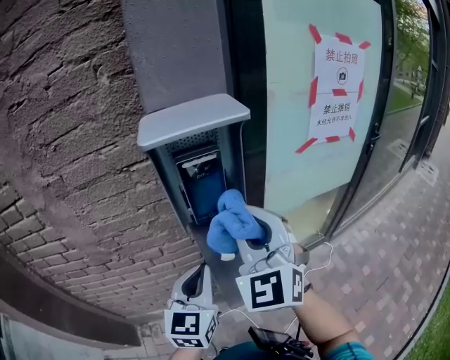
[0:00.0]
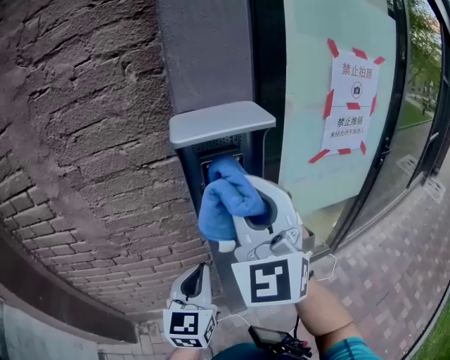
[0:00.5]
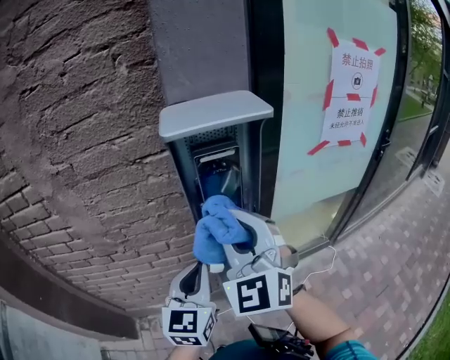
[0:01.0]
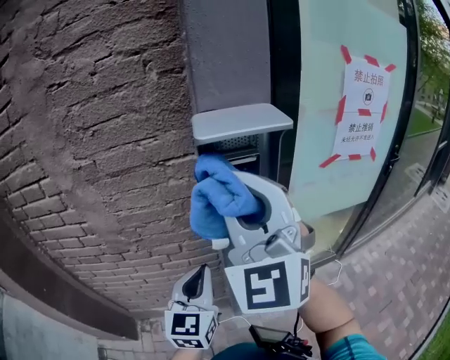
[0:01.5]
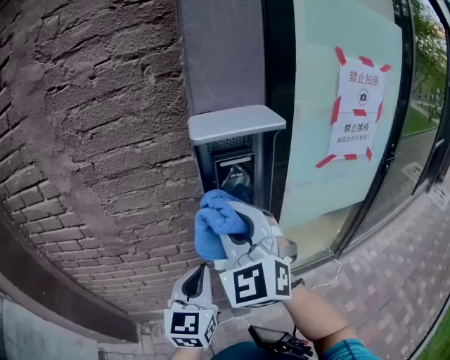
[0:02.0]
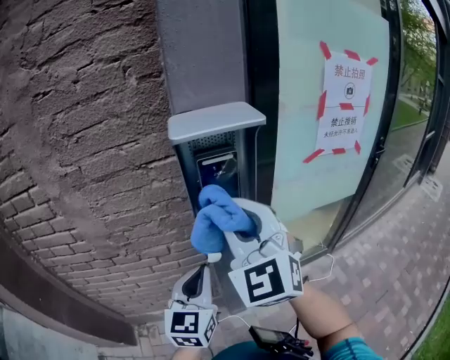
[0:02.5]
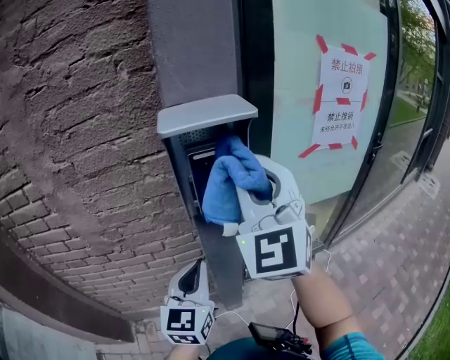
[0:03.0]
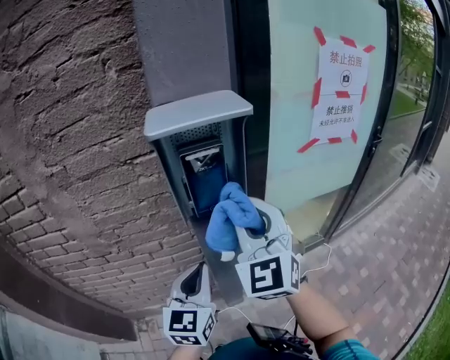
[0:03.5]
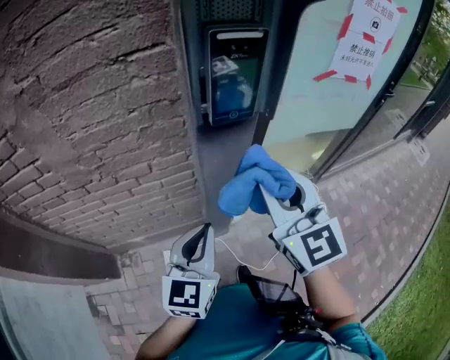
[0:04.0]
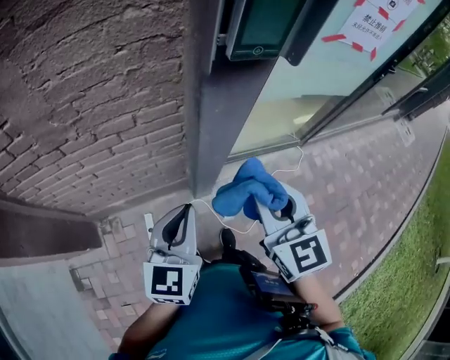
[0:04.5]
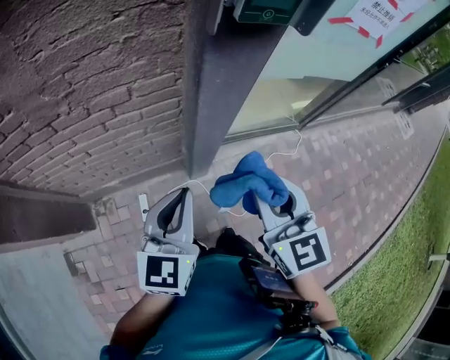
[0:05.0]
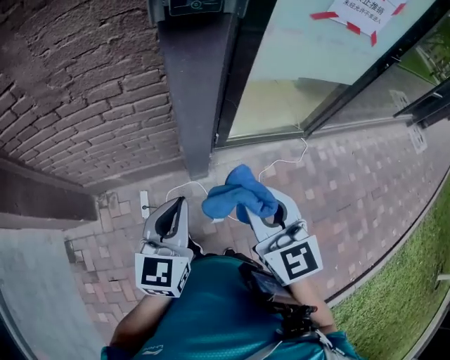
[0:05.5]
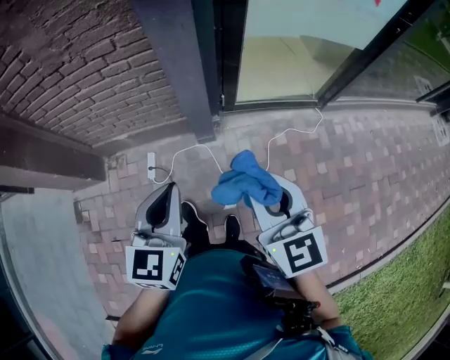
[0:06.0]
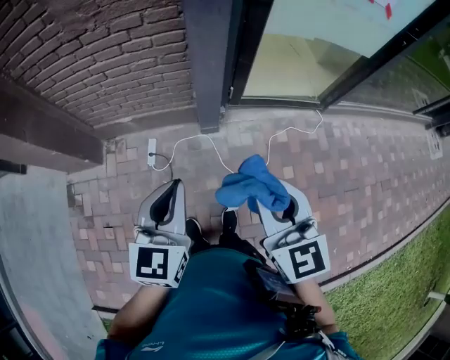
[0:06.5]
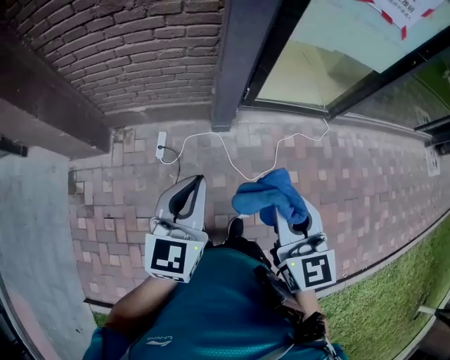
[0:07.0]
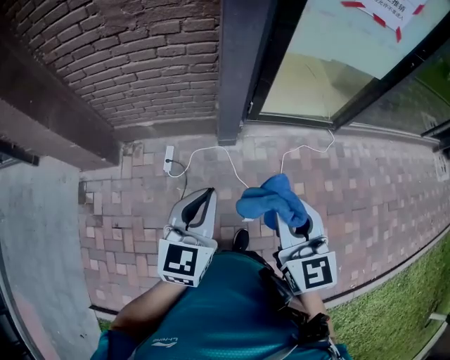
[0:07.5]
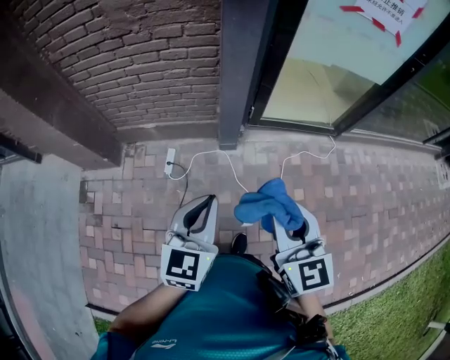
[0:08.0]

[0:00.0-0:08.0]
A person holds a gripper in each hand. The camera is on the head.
0:00.0 to 0:02.0: The right gripper moves up and down over roughly 10 cm, changing direction 3 times. Meanwhile the left gripper changes place by some 5 cm.
0:02.0 to 0:04.0: The right gripper moves downward and to the right, some 15 cm, and swivels about 30 degrees; the left gripper heads downward and backward, covering some 10 cm.
0:04.0 to 0:06.0: The right gripper shifts some 35 cm backward, downward and to the right. Meanwhile the left gripper travels backward by some 20 cm.
0:06.0 to 0:08.0: The left gripper is displaced backward by approximately 10 cm. Meanwhile the right gripper travels backward and to the left by roughly 10 cm.

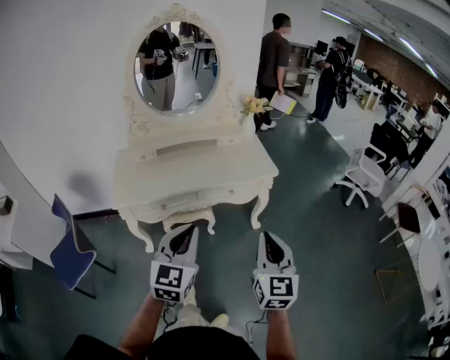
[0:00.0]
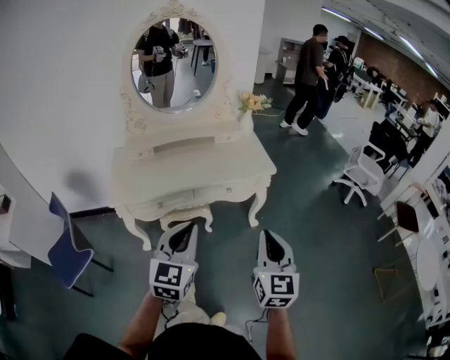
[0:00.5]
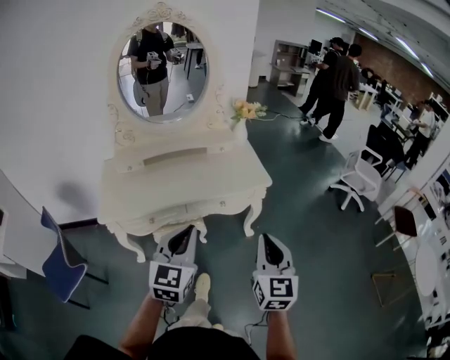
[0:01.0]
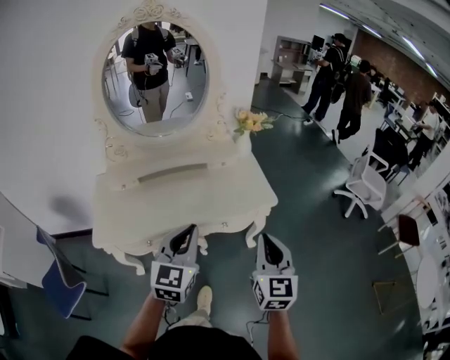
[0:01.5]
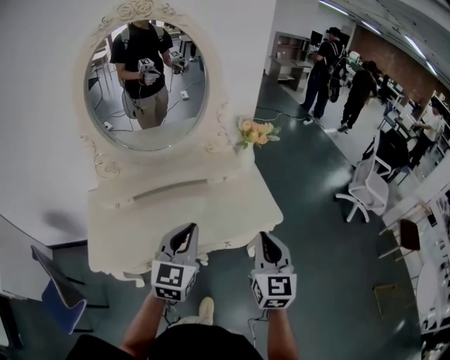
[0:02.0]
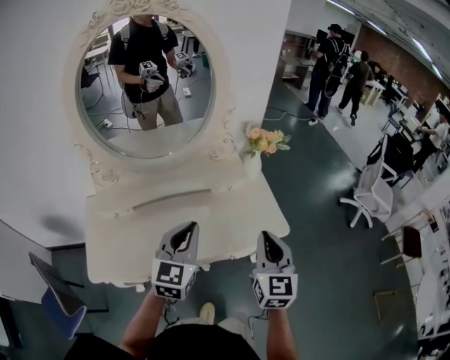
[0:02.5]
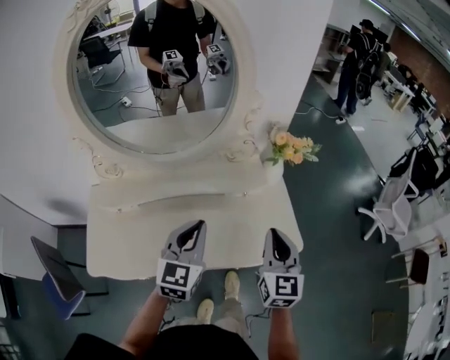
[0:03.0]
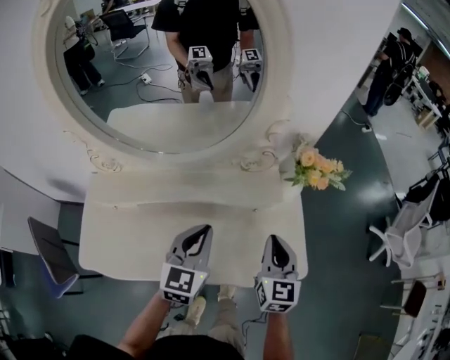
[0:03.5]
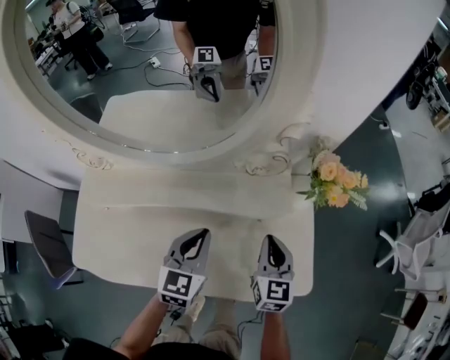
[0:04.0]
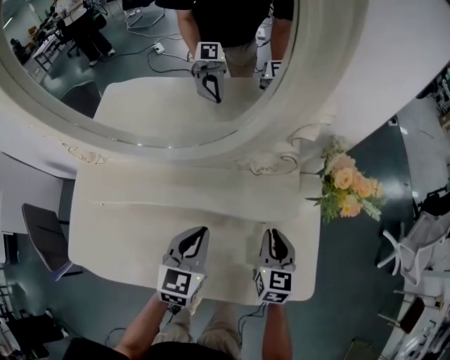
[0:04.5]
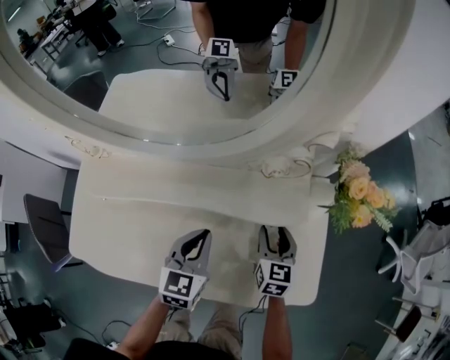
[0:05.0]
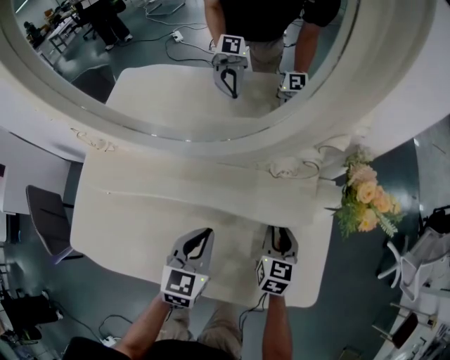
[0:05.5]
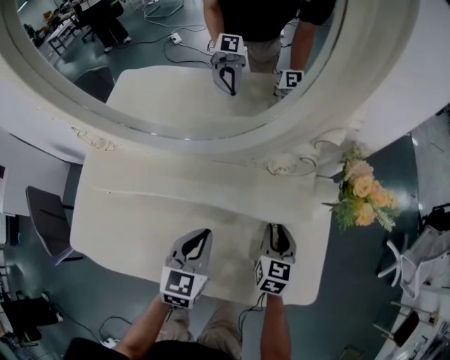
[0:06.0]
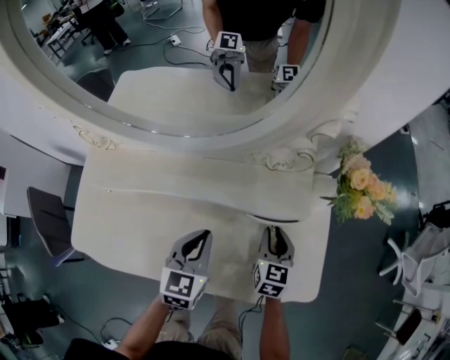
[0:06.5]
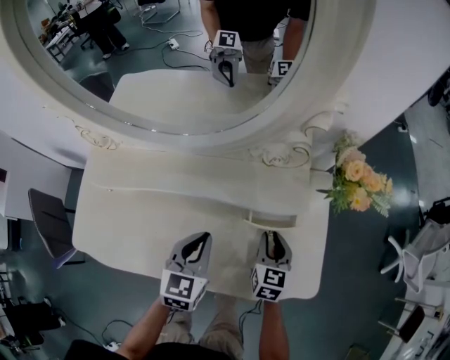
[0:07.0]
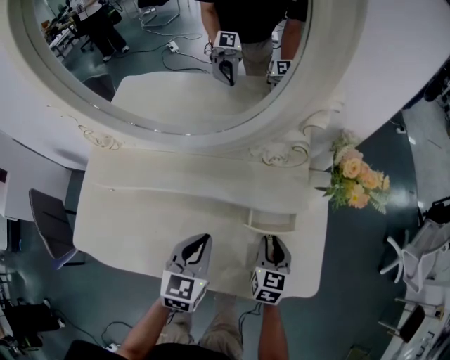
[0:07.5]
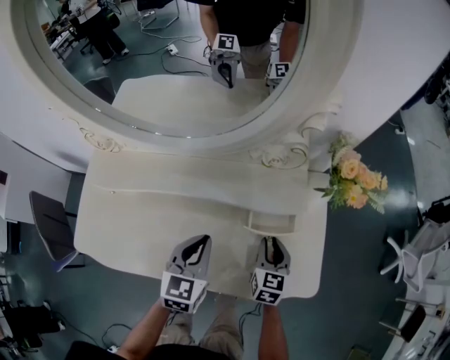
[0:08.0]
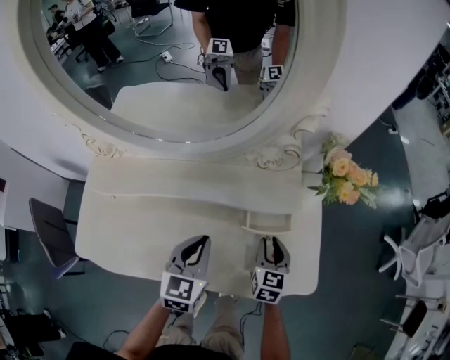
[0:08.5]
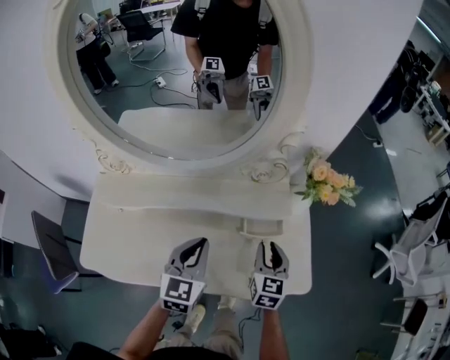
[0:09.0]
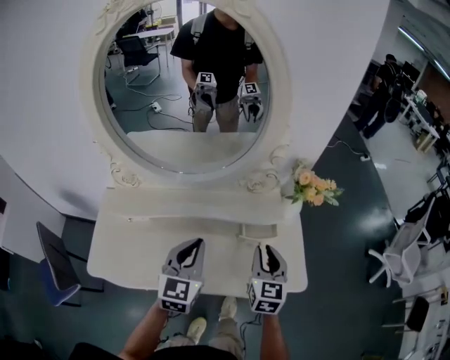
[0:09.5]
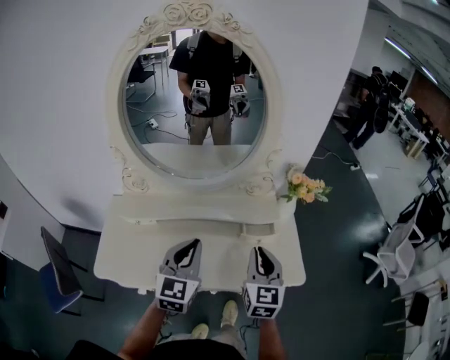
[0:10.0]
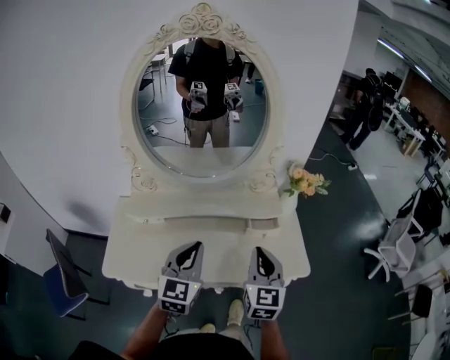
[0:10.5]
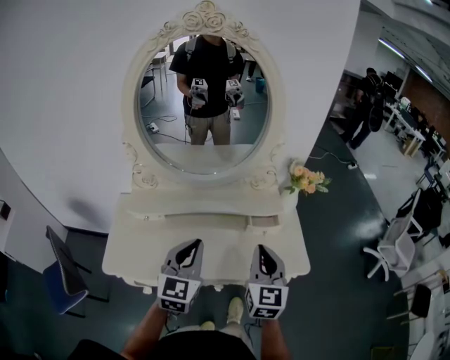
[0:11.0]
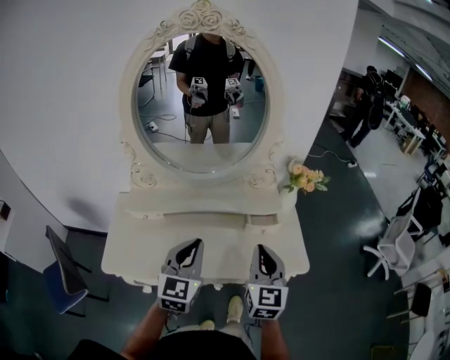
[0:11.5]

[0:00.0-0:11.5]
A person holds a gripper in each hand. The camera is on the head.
0:00.0 to 0:02.0: Both grippers travel together forward, some 35 cm.
0:02.0 to 0:04.0: The two grippers go some 35 cm forward and downward. The right gripper rotates approximately 20 degrees. Meanwhile the left gripper swivels about 20 degrees.
0:04.0 to 0:06.0: The left gripper is displaced downward by approximately 5 cm. Meanwhile the right gripper goes roughly 10 cm downward, and opens up.
0:06.0 to 0:07.5: The right gripper shifts approximately 5 cm backward.
0:07.5 to 0:09.5: The two grippers go roughly 20 cm upward.
0:09.5 to 0:11.5: The left gripper moves backward and upward, about 15 cm. Meanwhile the right gripper heads backward, upward and to the left, covering about 20 cm, and closes its fingers.

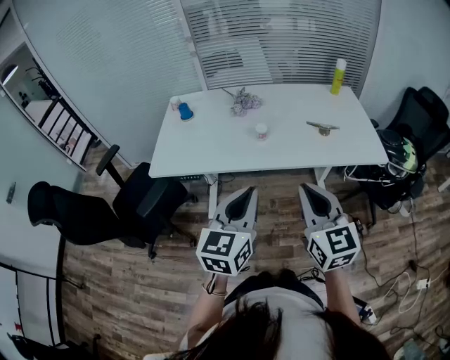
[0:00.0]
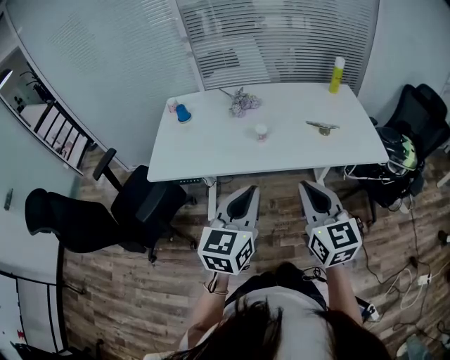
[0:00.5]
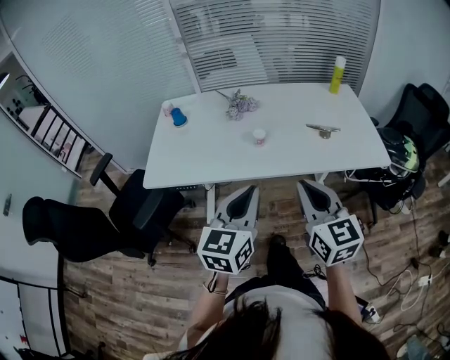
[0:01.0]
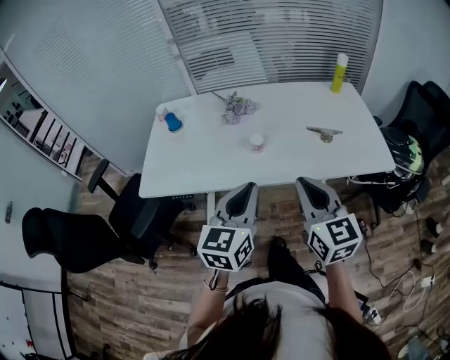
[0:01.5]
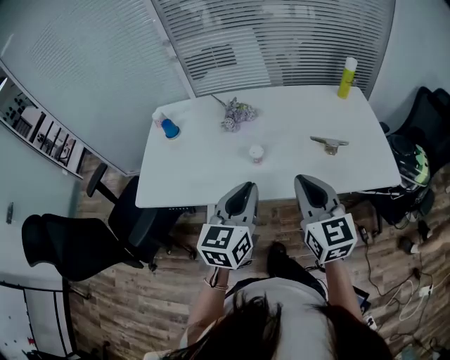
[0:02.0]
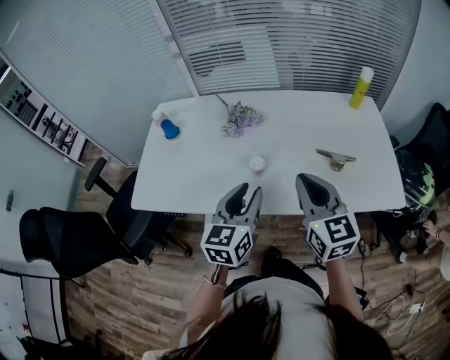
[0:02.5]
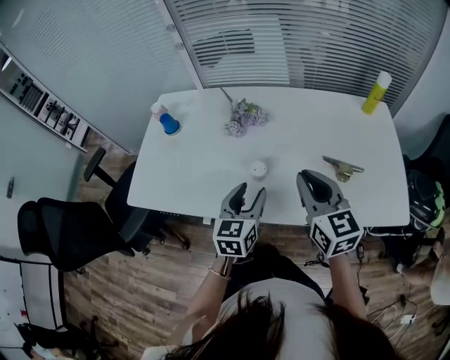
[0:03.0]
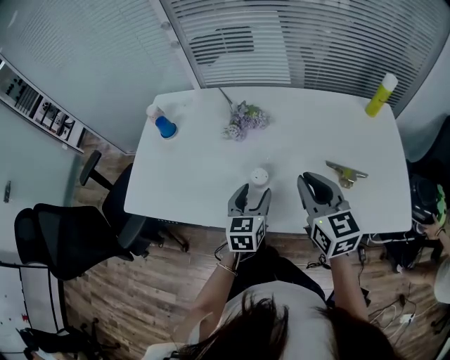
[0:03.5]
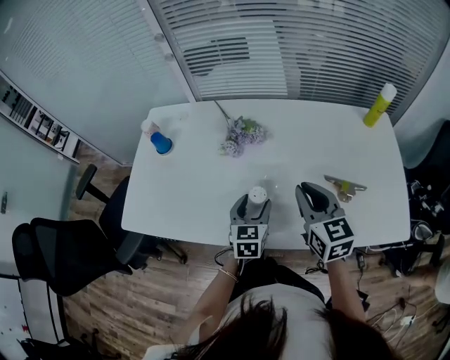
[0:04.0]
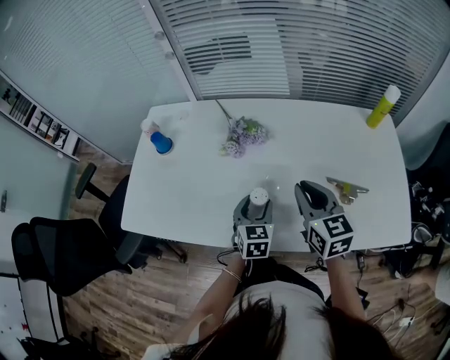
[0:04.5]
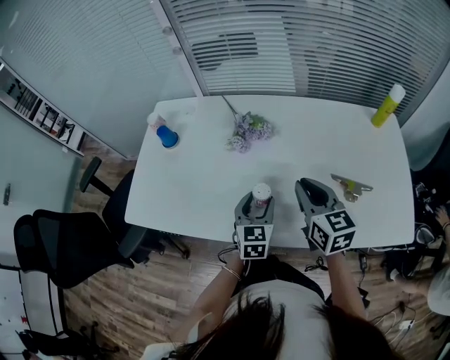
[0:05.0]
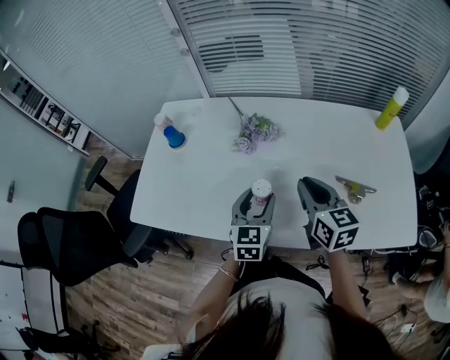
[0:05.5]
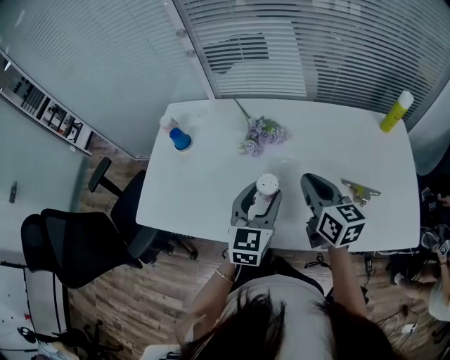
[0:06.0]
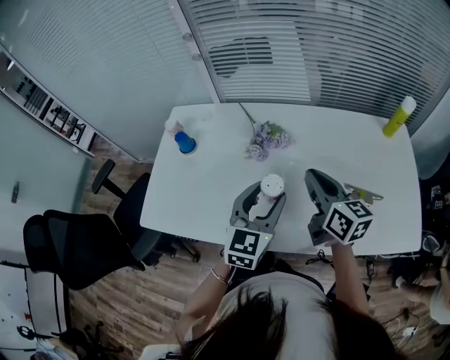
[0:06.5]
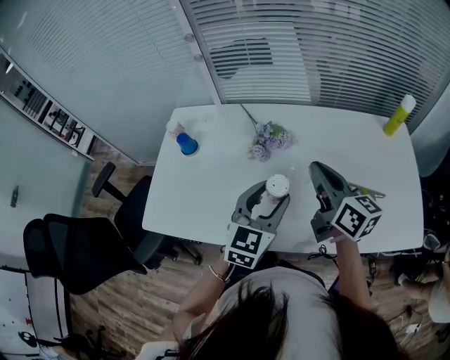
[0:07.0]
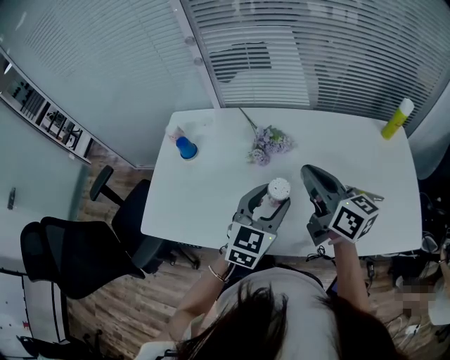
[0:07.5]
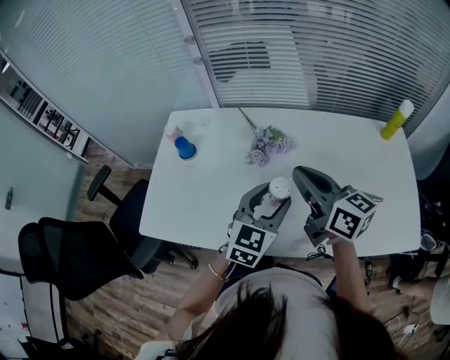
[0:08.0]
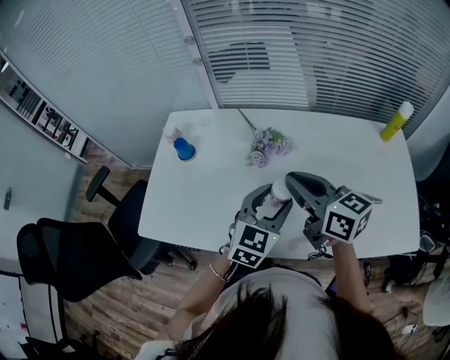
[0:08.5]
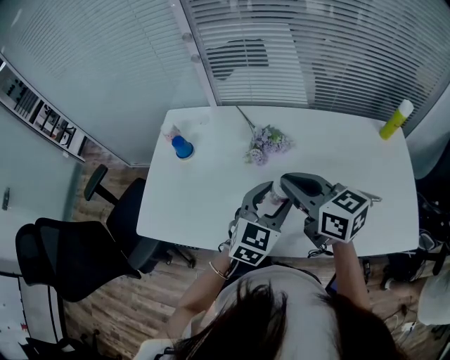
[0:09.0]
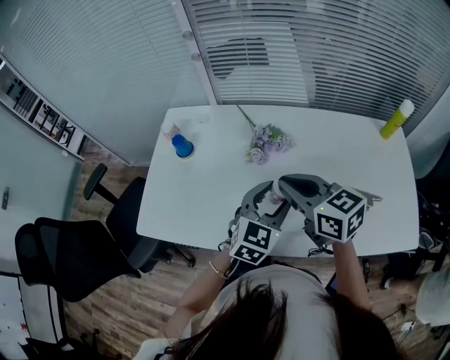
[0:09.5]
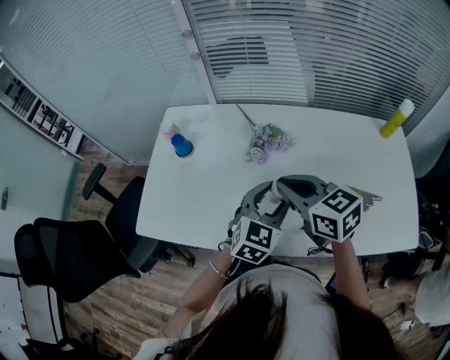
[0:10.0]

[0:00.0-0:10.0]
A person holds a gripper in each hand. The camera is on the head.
0:00.0 to 0:02.0: Both grippers travel together forward, roughly 20 cm.
0:02.0 to 0:04.0: The left gripper is displaced downward and forward by roughly 30 cm, rotates some 20 degrees, and opens up. Meanwhile the right gripper travels forward and downward by approximately 20 cm.
0:04.0 to 0:06.0: The right gripper moves roughly 5 cm. Meanwhile the left gripper goes some 10 cm upward.
0:06.0 to 0:08.0: The right gripper heads upward and to the left, covering some 10 cm.
0:08.0 to 0:10.0: The right gripper moves some 5 cm, and turns by about 30 degrees.
